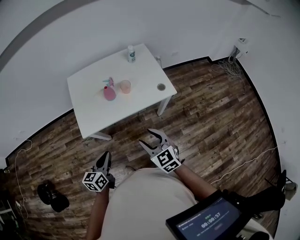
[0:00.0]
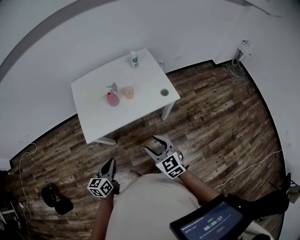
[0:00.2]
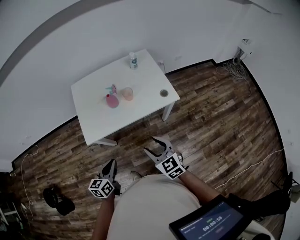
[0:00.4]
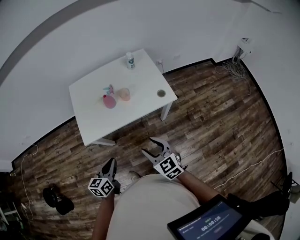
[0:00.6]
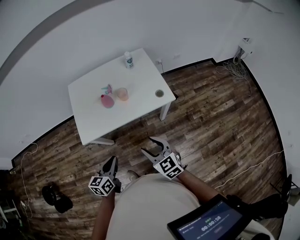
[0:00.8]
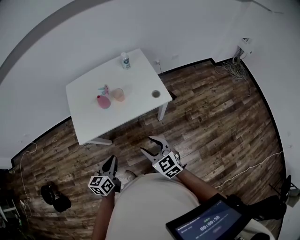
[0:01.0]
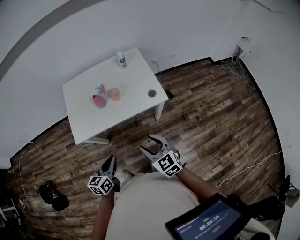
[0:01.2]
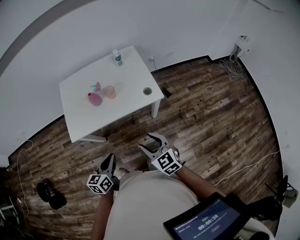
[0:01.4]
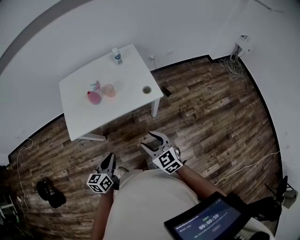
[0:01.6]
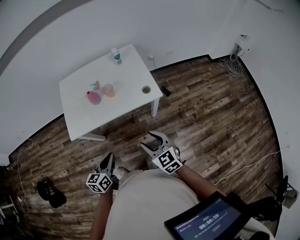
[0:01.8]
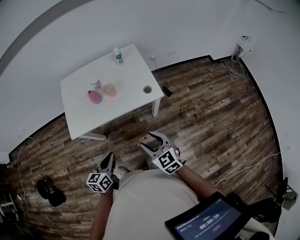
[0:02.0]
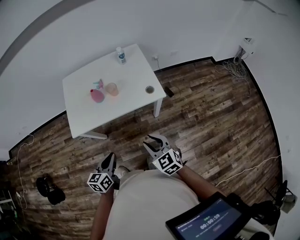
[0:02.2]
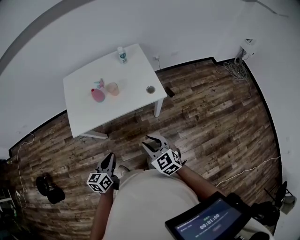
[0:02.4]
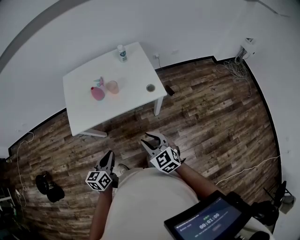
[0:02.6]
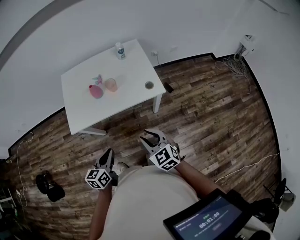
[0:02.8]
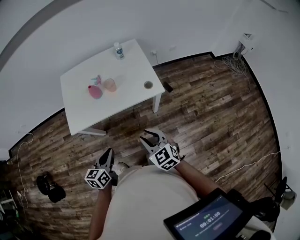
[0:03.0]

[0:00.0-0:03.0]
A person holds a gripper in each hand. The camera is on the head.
0.0 to 1.6 s: Both grippers travel together to the right, roughly 15 cm.
1.6 to 3.0 s: The grippers move only a little.

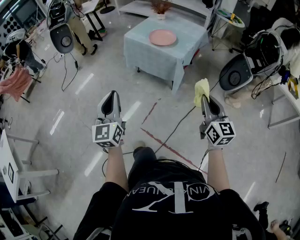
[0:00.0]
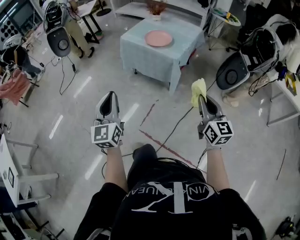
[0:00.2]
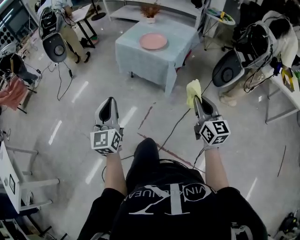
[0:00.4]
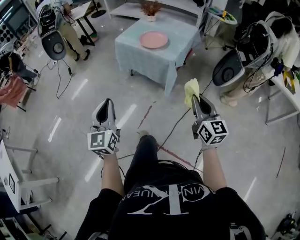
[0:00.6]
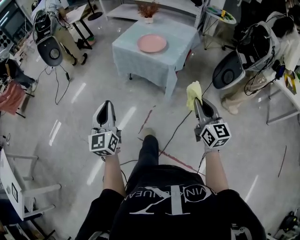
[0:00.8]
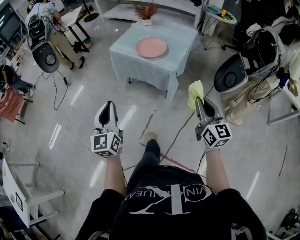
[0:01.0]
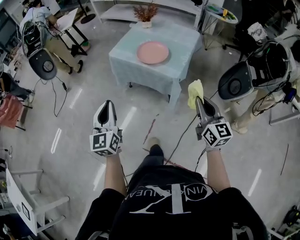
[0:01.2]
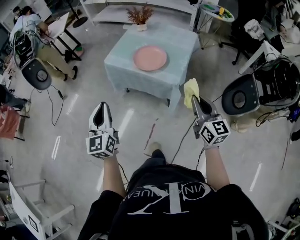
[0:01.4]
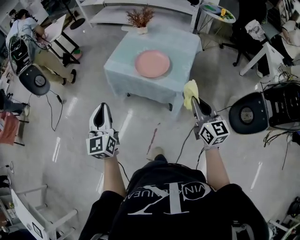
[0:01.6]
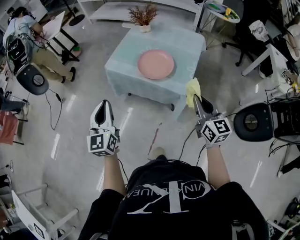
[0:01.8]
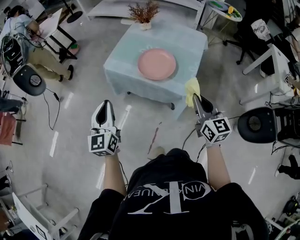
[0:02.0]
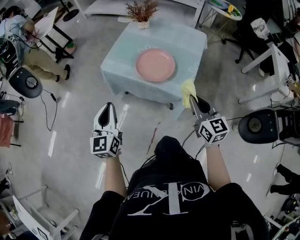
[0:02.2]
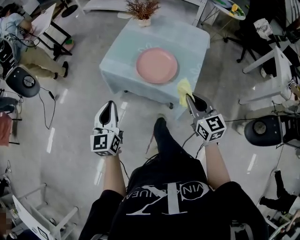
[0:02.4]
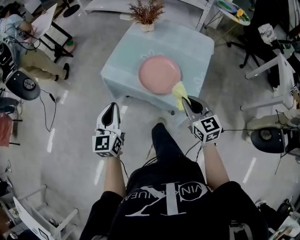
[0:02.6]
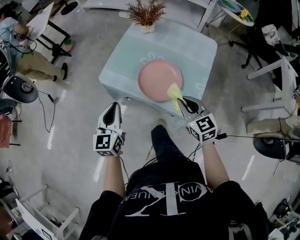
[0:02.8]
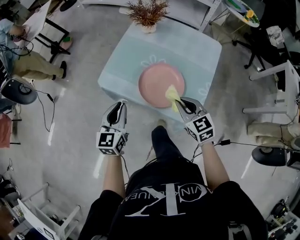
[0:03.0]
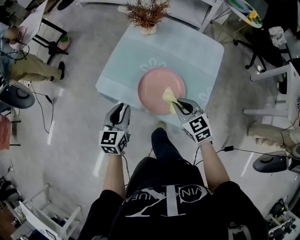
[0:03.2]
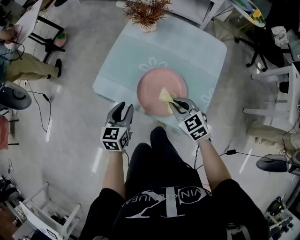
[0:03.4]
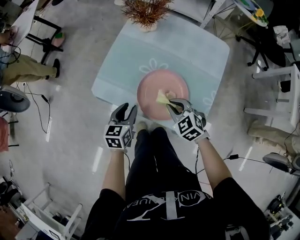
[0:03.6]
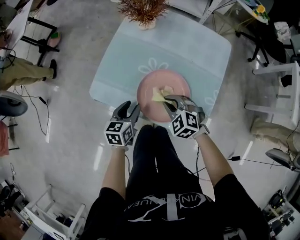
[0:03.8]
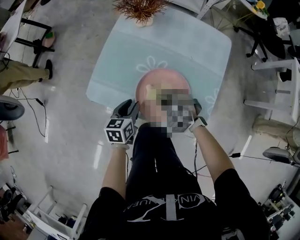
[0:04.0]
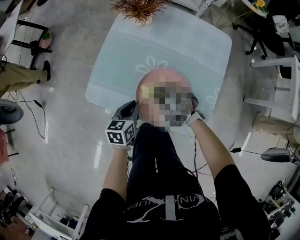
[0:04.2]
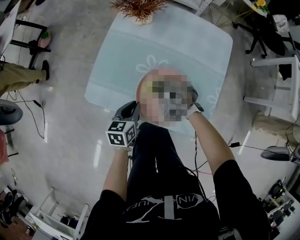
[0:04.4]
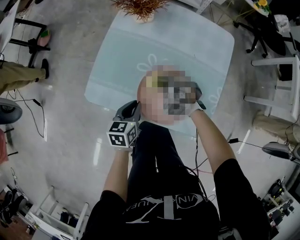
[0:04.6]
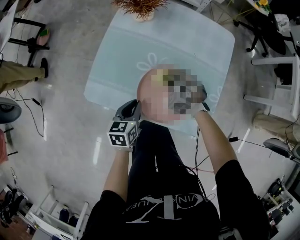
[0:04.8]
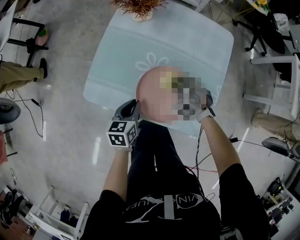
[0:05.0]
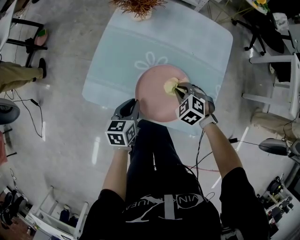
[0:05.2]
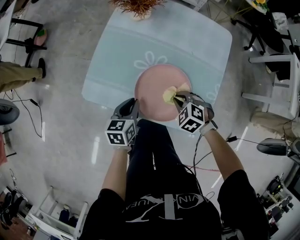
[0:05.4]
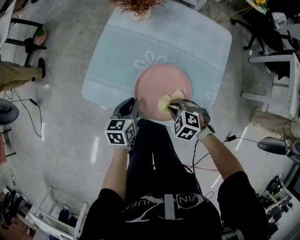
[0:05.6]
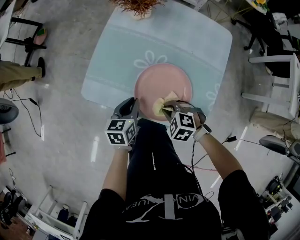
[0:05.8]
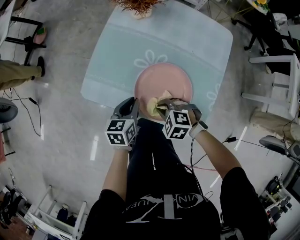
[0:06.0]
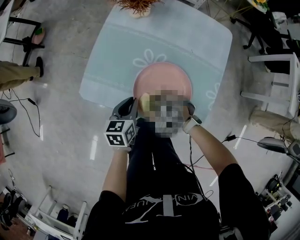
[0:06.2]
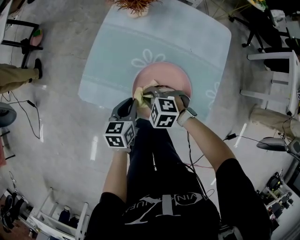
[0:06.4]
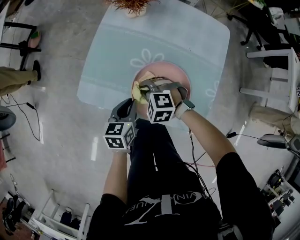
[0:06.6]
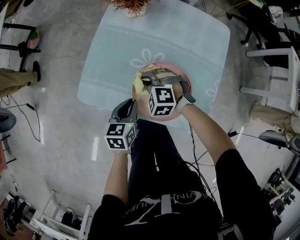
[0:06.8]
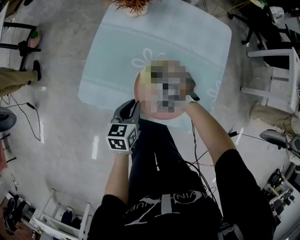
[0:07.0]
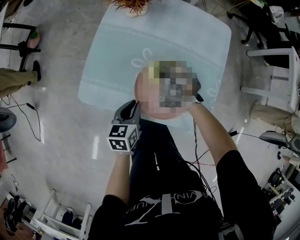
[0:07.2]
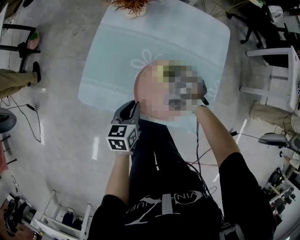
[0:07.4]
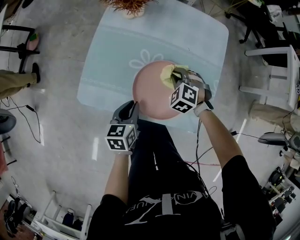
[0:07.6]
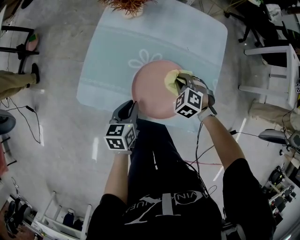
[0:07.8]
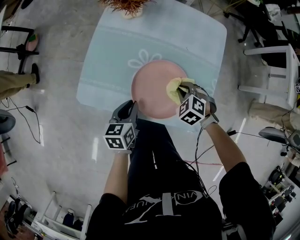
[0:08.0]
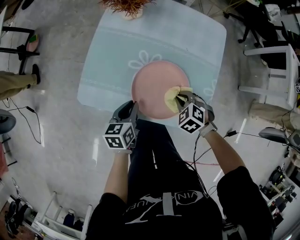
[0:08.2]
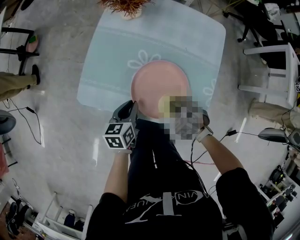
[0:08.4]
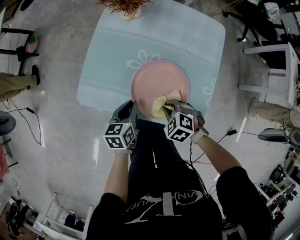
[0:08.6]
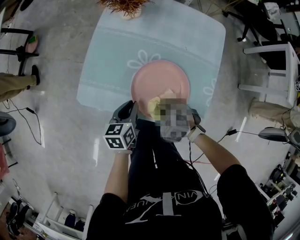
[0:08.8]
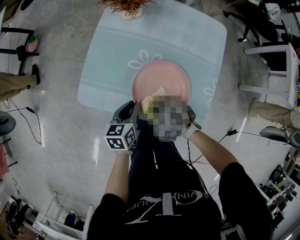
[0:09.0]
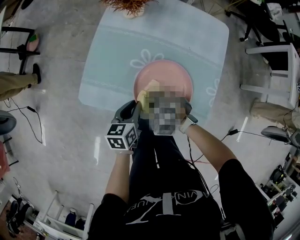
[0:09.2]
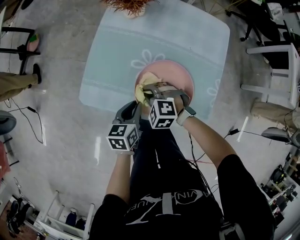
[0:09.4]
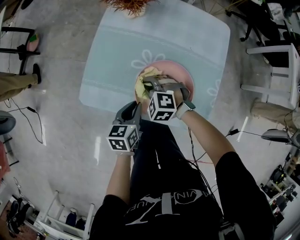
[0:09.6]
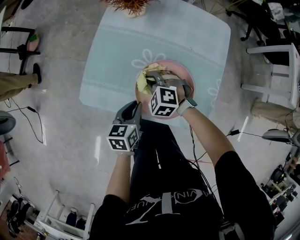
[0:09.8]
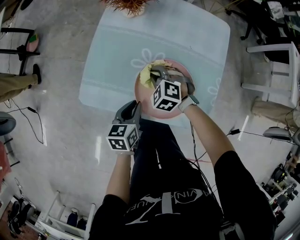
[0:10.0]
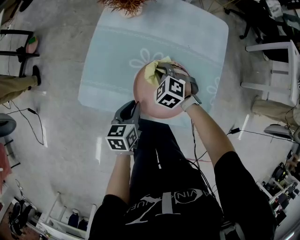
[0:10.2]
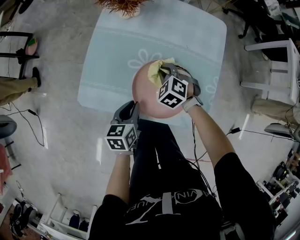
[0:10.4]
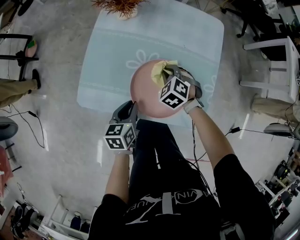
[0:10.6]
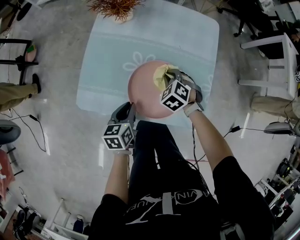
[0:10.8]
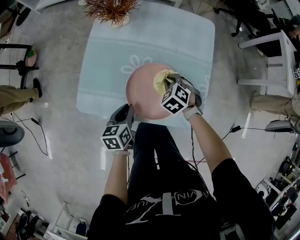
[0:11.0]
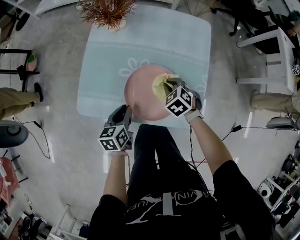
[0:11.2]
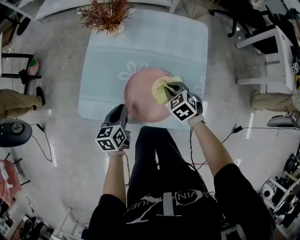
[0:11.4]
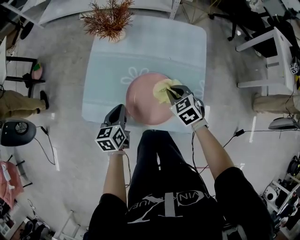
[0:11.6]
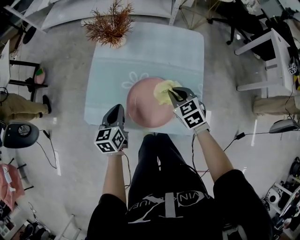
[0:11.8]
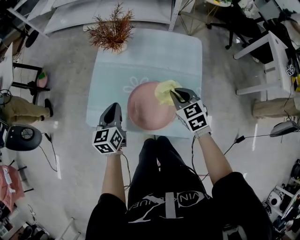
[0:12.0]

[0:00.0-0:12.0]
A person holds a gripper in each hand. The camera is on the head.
0.0 to 1.6 s: The two grippers go some 40 cm forward.
1.6 to 3.0 s: The left gripper heads forward and downward, covering roughly 35 cm, and rotates about 20 degrees. The right gripper goes some 35 cm forward, and turns by about 30 degrees.
3.0 to 4.4 s: The left gripper travels downward and forward by approximately 25 cm, and turns by some 30 degrees, while the right gripper goes approximately 30 cm forward, downward and to the left, and rotates about 50 degrees.
4.4 to 6.0 s: The right gripper heads backward, covering some 10 cm.
6.0 to 7.6 s: The right gripper moves some 15 cm, and changes its angle by some 30 degrees.
7.6 to 9.0 s: The right gripper heads backward and to the left, covering about 15 cm, and turns by about 30 degrees.
9.0 to 10.4 s: The right gripper is displaced forward by roughly 15 cm, and turns by some 20 degrees.
10.4 to 12.0 s: The left gripper goes some 15 cm upward, and turns by some 20 degrees, while the right gripper goes some 20 cm upward and to the right, and rotates about 40 degrees.

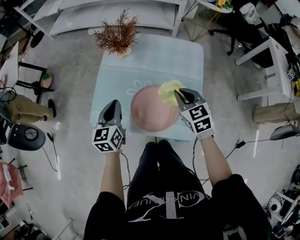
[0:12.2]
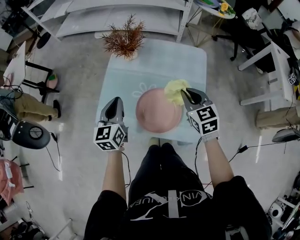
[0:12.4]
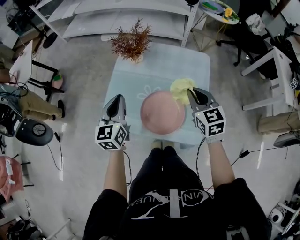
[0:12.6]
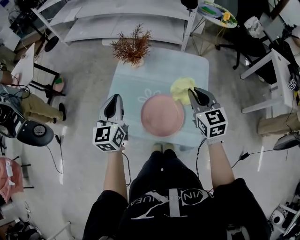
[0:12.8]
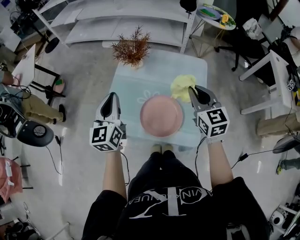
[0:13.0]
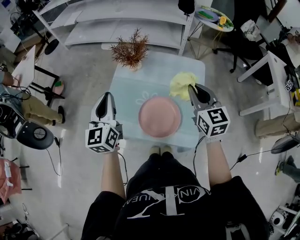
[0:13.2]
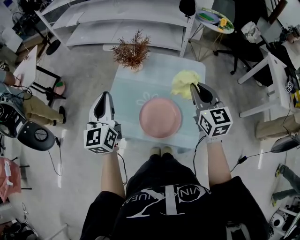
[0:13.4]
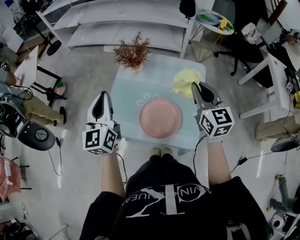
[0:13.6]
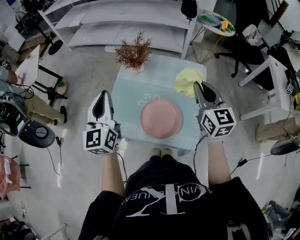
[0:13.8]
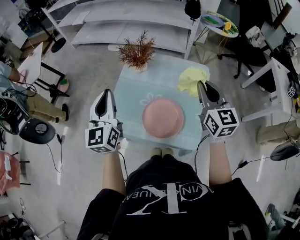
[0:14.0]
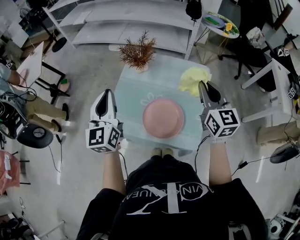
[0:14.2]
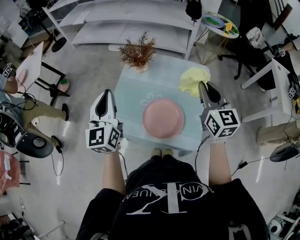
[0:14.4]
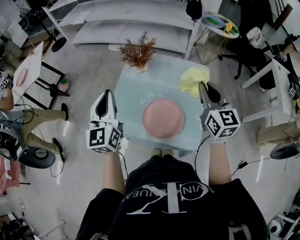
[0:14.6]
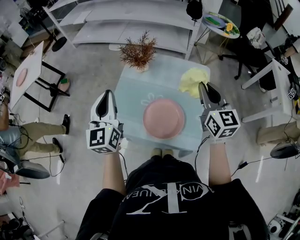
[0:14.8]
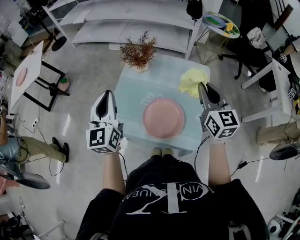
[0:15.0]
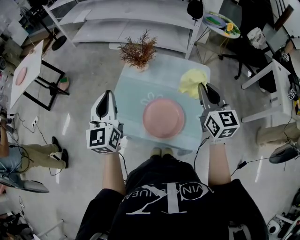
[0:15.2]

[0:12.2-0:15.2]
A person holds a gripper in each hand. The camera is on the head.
12.2 to 13.8 s: Both grippers travel together upward, approximately 20 cm. The left gripper changes its angle by about 30 degrees; the right gripper rotates roughly 30 degrees.
13.8 to 15.2 s: The grippers make only small movements.

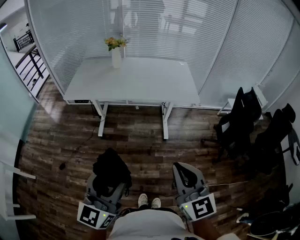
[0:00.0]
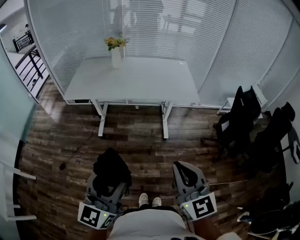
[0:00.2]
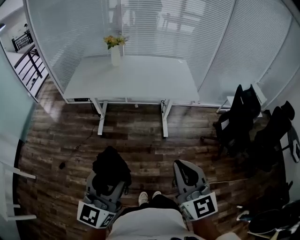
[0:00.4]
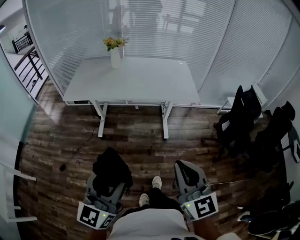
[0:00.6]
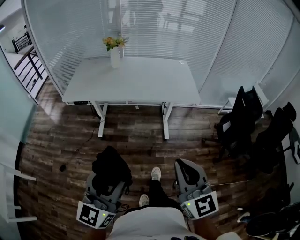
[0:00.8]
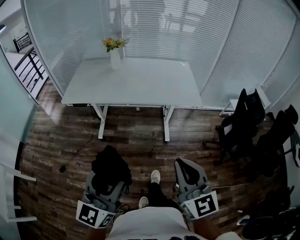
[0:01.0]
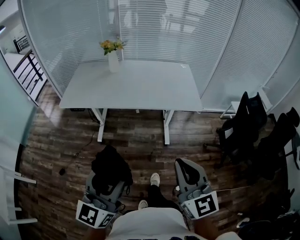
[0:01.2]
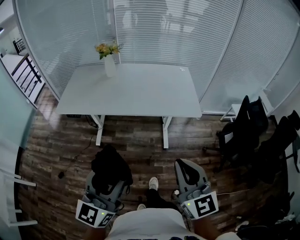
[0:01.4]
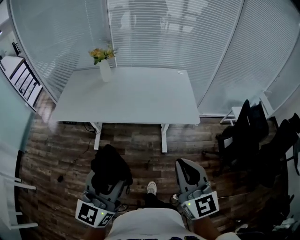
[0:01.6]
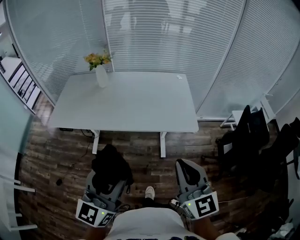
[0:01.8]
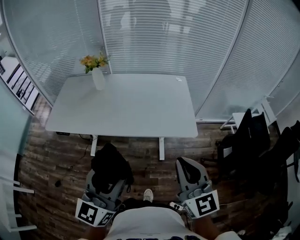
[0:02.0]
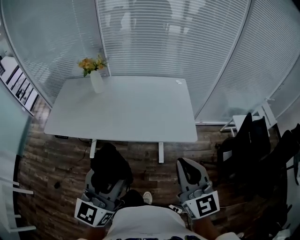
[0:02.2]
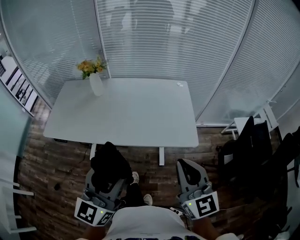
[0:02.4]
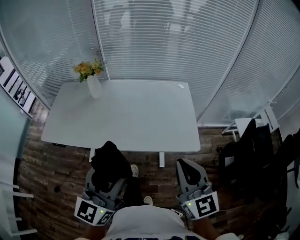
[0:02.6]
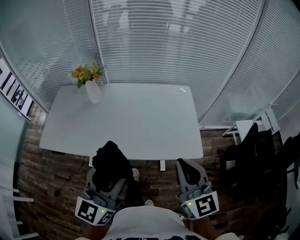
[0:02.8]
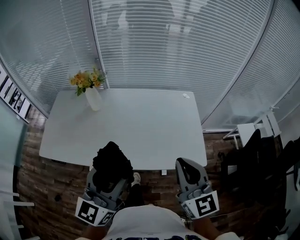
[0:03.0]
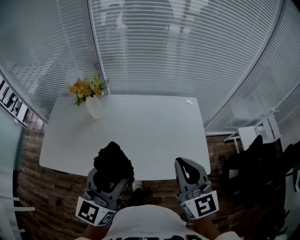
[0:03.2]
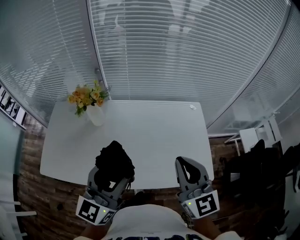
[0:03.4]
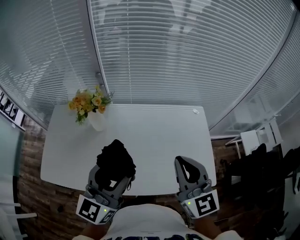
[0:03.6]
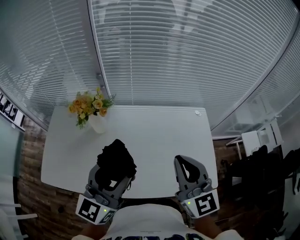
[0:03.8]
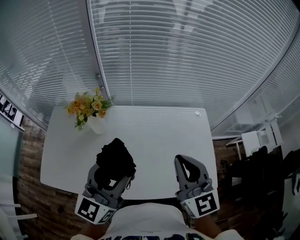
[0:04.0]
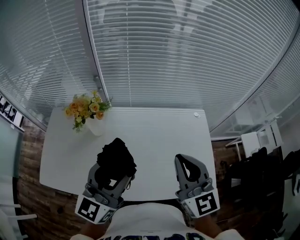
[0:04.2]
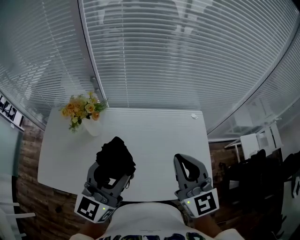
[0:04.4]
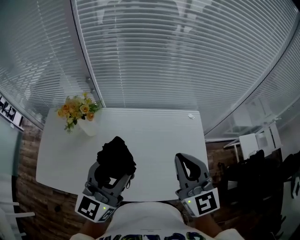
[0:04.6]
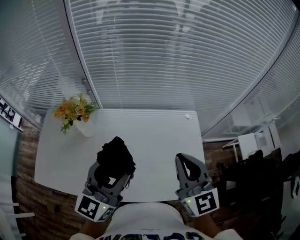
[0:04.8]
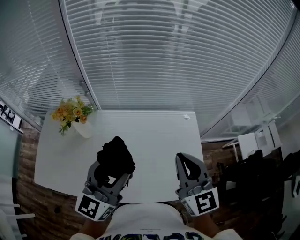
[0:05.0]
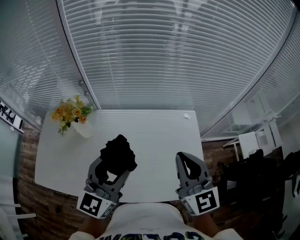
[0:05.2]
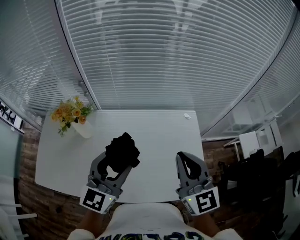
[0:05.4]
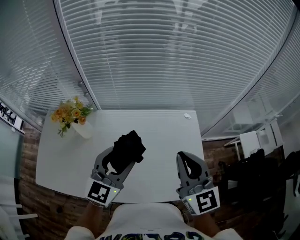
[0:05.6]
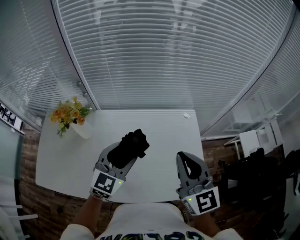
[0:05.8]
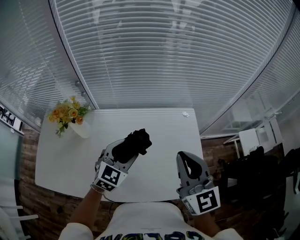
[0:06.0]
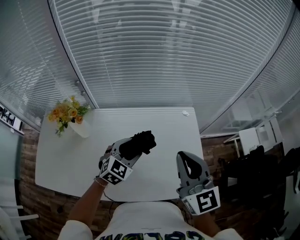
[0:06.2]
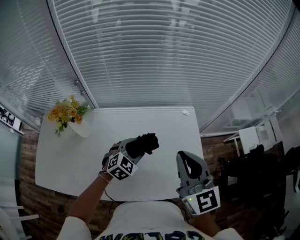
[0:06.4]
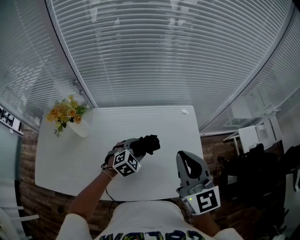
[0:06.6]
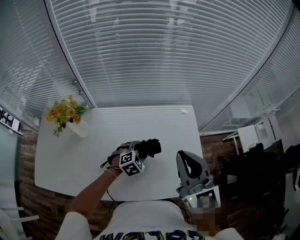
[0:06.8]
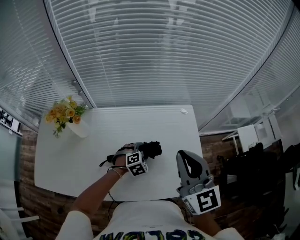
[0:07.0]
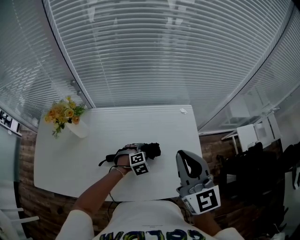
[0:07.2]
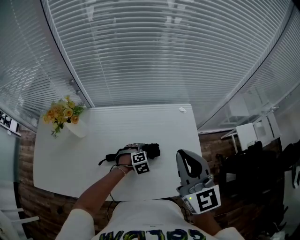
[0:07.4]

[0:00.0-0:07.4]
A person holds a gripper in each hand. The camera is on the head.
0.0 to 1.4 s: Both grippers travel together forward, roughly 15 cm.
1.4 to 3.0 s: The grippers both shift forward by about 40 cm.
3.0 to 4.4 s: Both grippers move forward, approximately 20 cm.
4.4 to 6.0 s: The left gripper goes some 20 cm downward, to the right and forward, and tilts its fingers roughly 30 degrees downward; the right gripper travels to the right by some 10 cm.
6.0 to 7.4 s: The left gripper travels downward by approximately 25 cm, and points its fingers roughly 40 degrees further downward.
